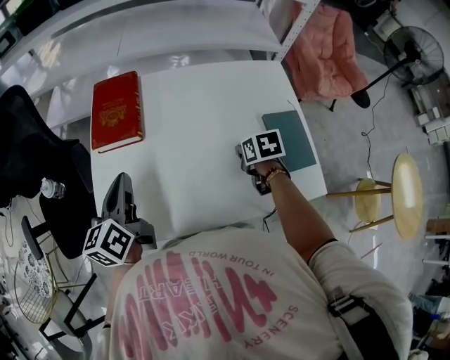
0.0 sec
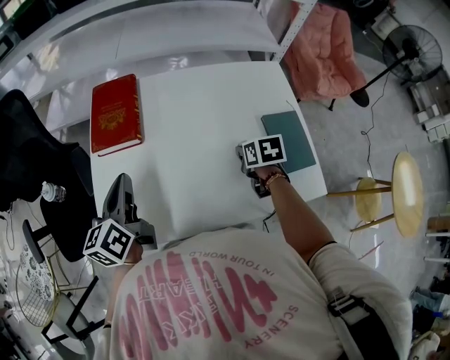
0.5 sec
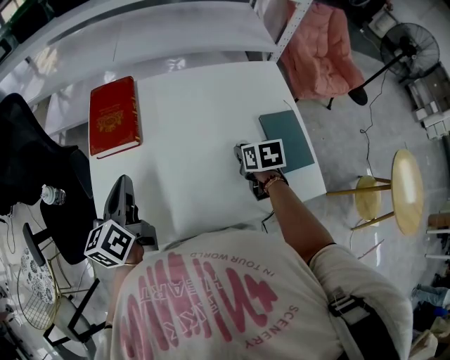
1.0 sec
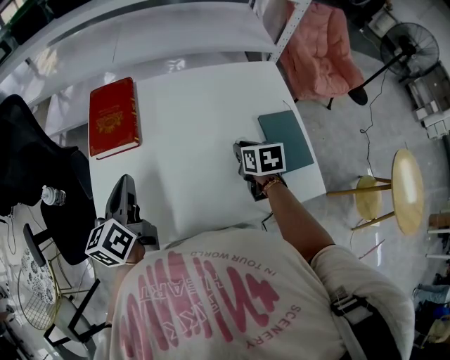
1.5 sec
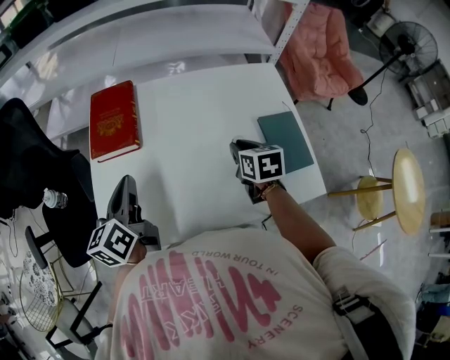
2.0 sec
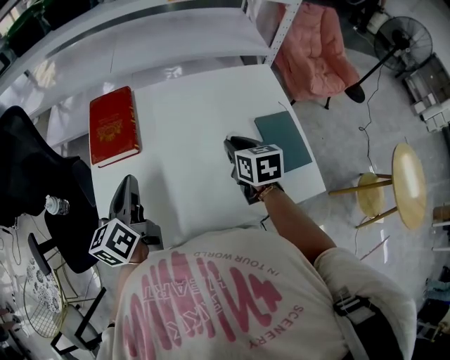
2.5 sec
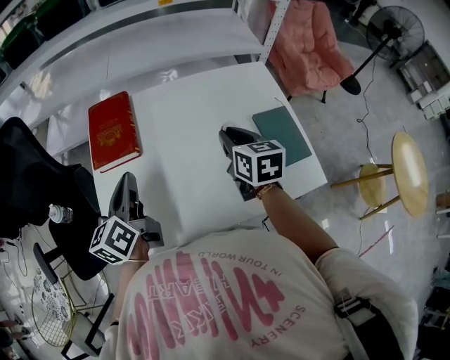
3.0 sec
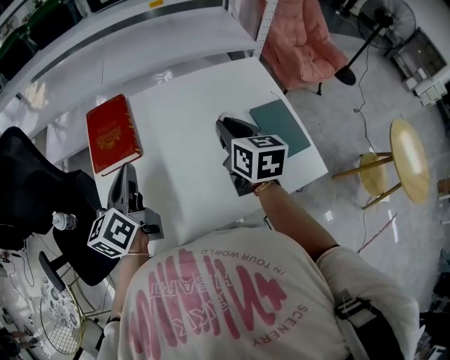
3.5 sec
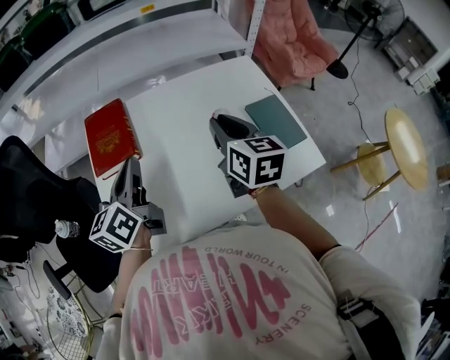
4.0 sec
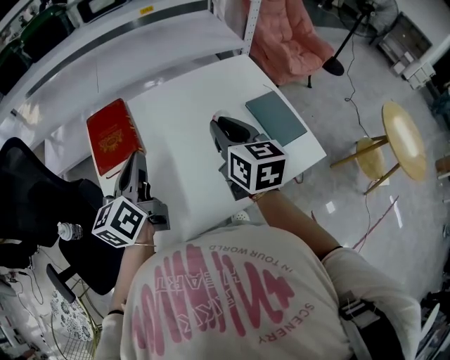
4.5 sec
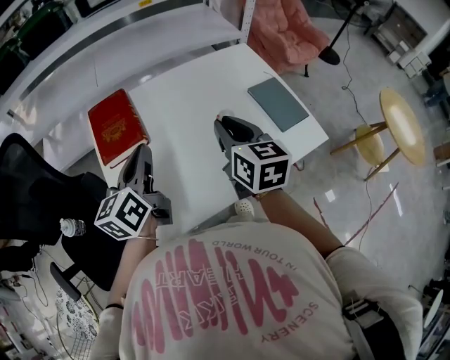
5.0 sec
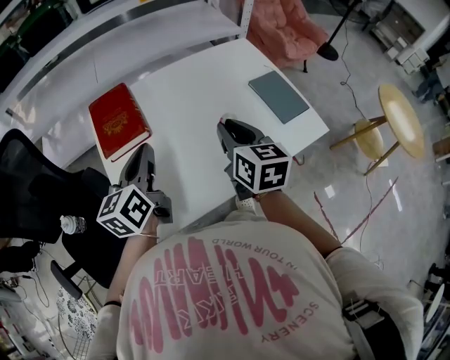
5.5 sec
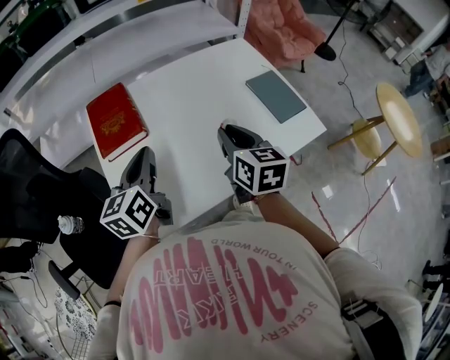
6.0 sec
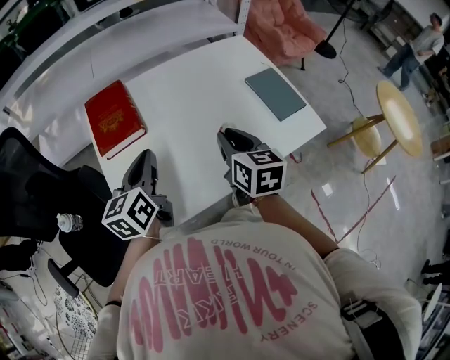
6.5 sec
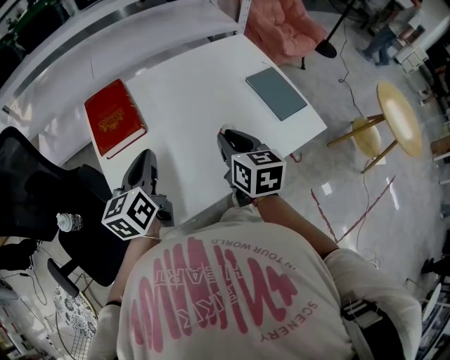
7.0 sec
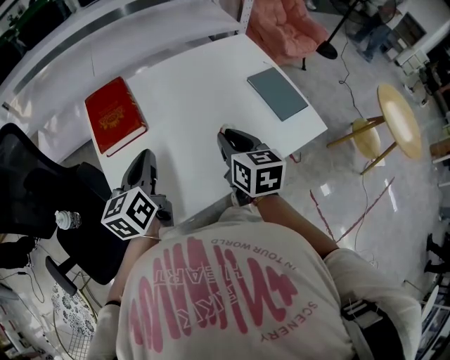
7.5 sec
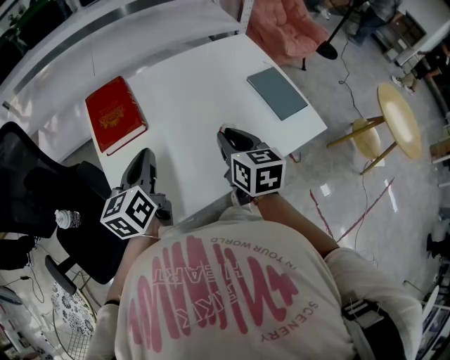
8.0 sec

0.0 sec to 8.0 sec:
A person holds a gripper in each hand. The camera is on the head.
0.0 sec to 2.0 sec: The right gripper moves upward, some 5 cm.
2.0 sec to 4.0 sec: The left gripper is displaced upward by roughly 5 cm. The right gripper is displaced upward by approximately 15 cm, and rotates some 30 degrees.
4.0 sec to 6.0 sec: The right gripper is displaced backward and downward by approximately 10 cm; the left gripper travels backward by about 5 cm.
6.0 sec to 8.0 sec: The grippers stay close to where they were, moving slightly.

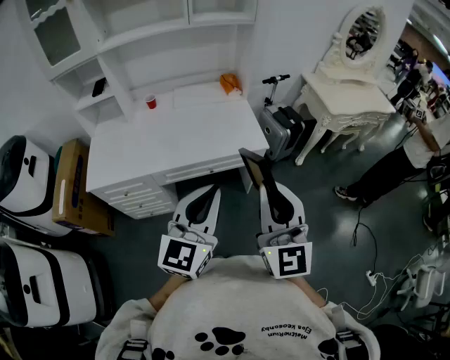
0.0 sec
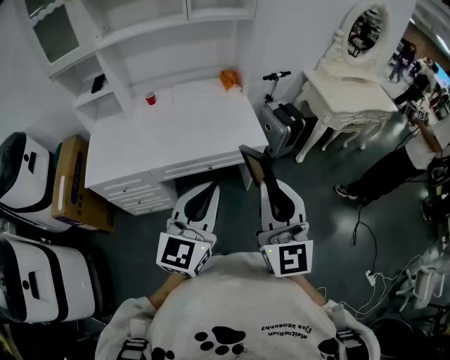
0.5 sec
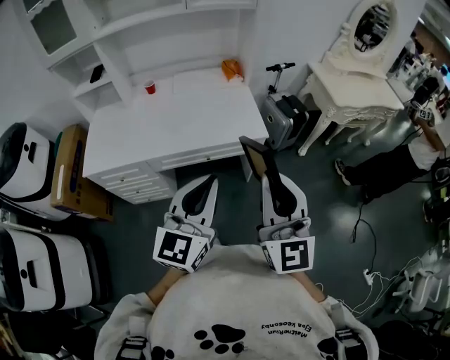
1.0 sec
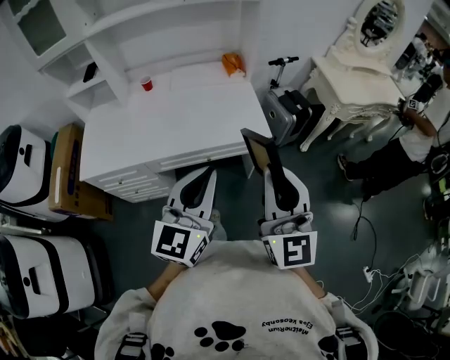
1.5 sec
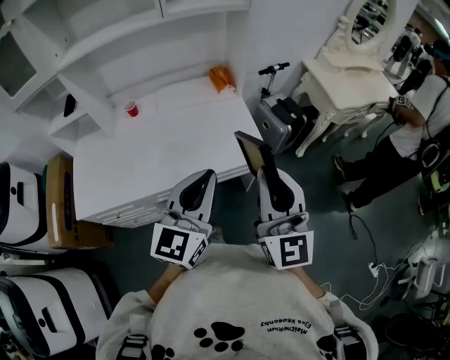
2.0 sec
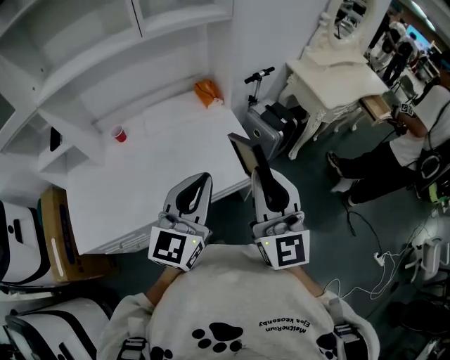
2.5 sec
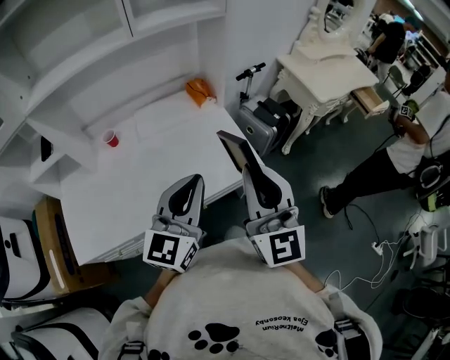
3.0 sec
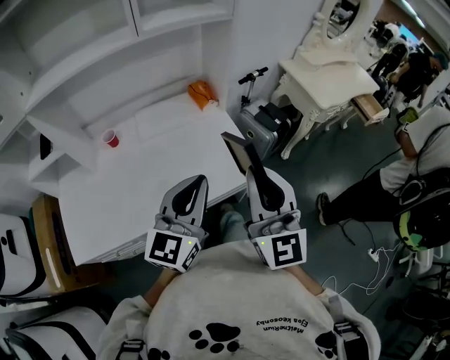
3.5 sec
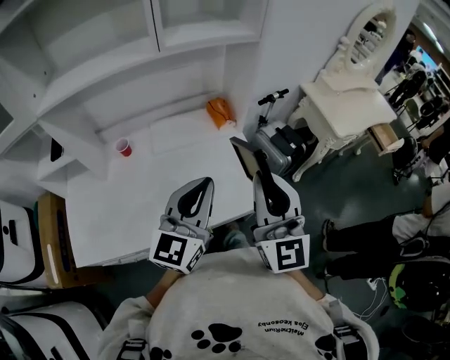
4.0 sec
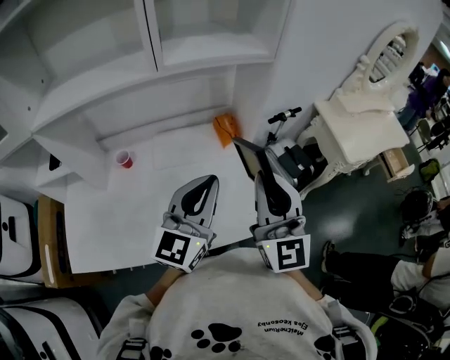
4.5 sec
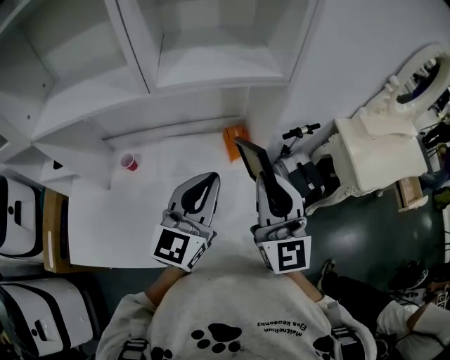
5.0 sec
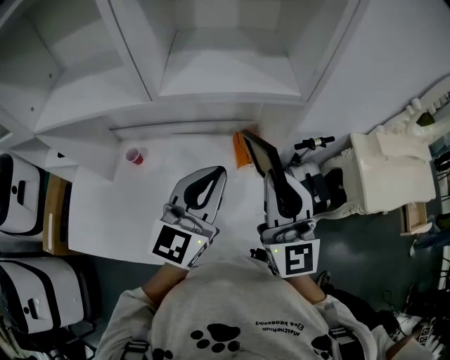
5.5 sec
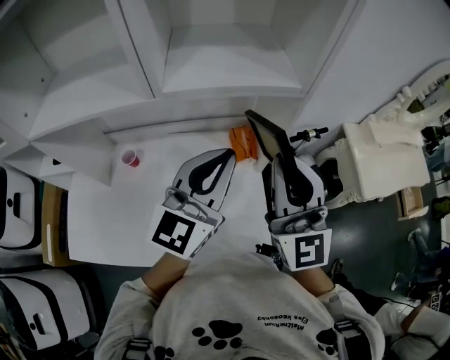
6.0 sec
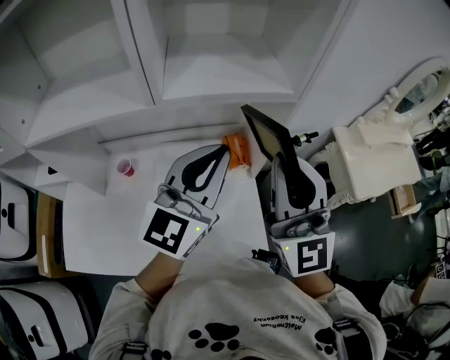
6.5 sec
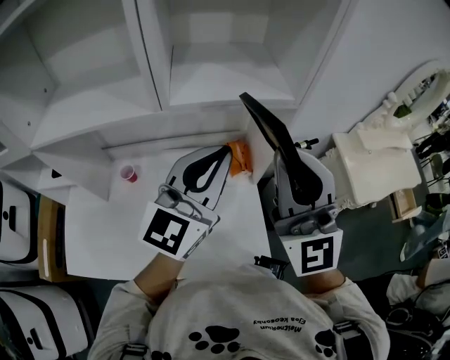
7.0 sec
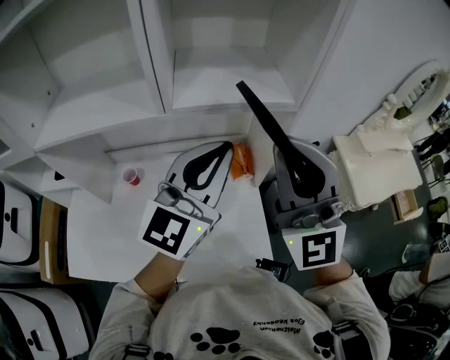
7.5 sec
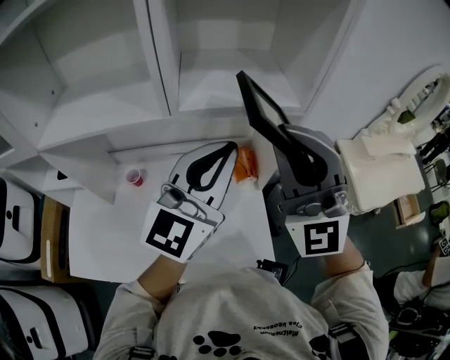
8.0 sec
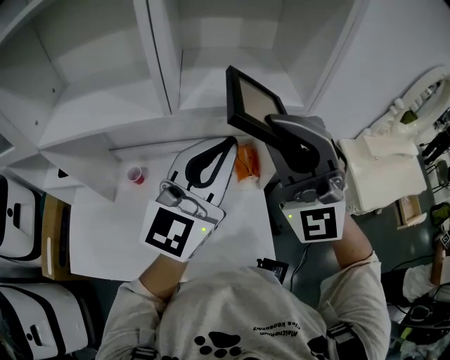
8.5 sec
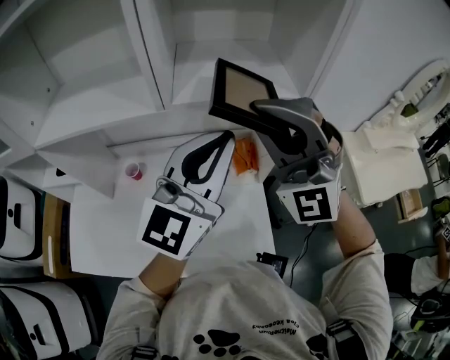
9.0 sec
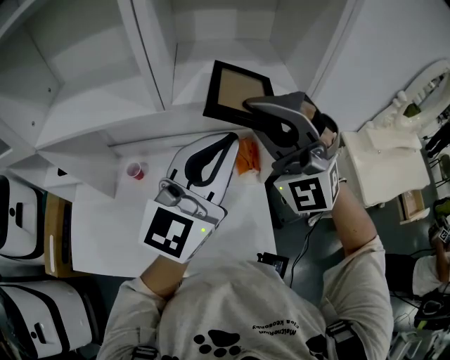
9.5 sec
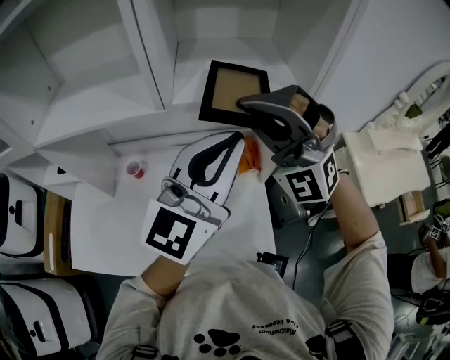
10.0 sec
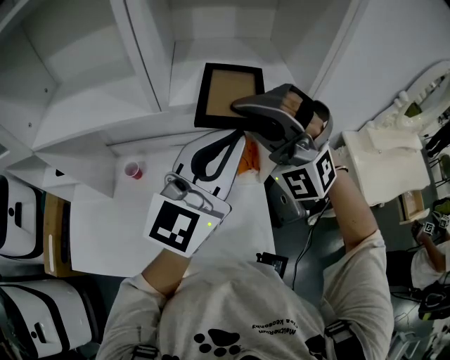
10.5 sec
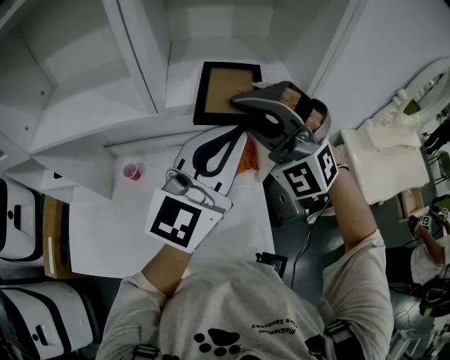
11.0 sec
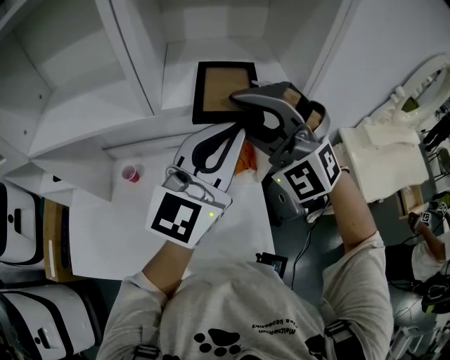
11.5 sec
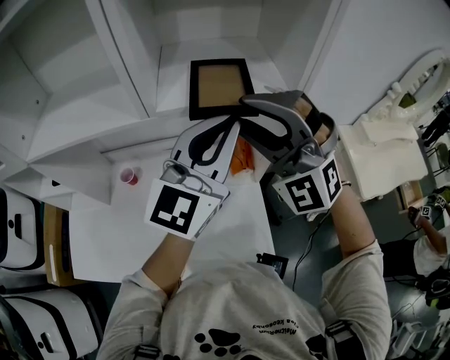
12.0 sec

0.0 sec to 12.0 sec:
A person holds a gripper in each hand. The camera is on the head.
0.0 sec to 2.0 sec: Both grippers travel together forward, about 20 cm.
2.0 sec to 4.0 sec: Both grippers move forward and to the left, approximately 20 cm.
4.0 sec to 6.0 sec: Both grippers travel together forward, about 30 cm.
6.0 sec to 8.0 sec: The left gripper shifts approximately 5 cm upward; the right gripper goes roughly 10 cm upward and to the left, and changes its angle by roughly 30 degrees.
8.0 sec to 10.0 sec: The right gripper heads forward and downward, covering about 10 cm, and swivels some 30 degrees.
10.0 sec to 12.0 sec: The right gripper opens up. Meanwhile the left gripper ends up some 5 cm from where it was.

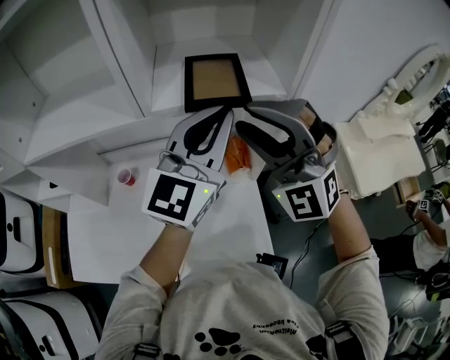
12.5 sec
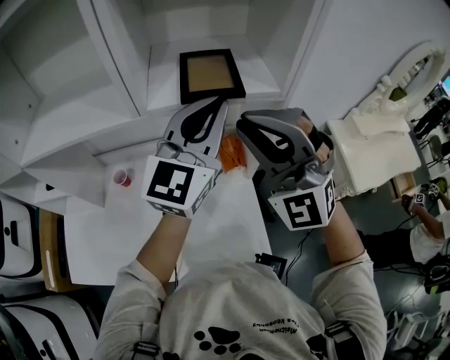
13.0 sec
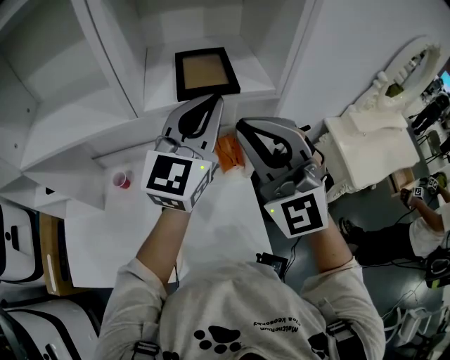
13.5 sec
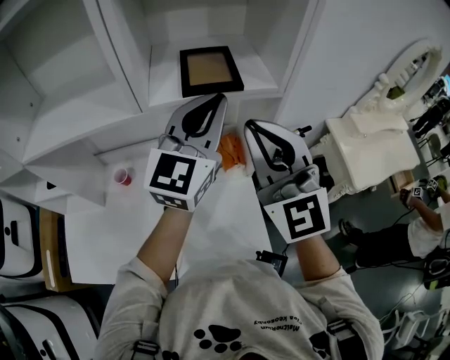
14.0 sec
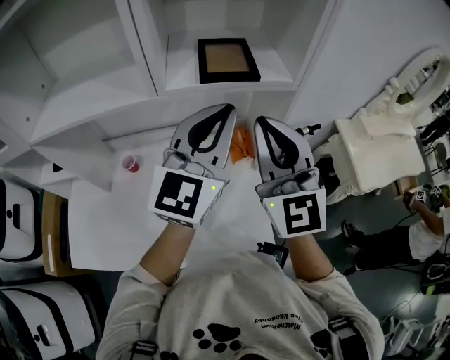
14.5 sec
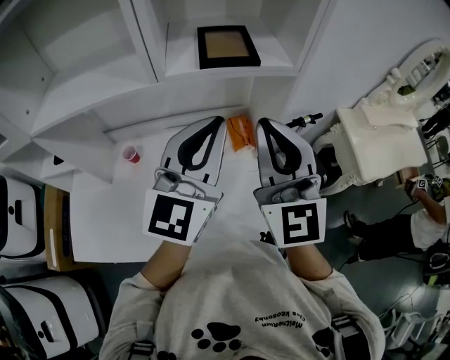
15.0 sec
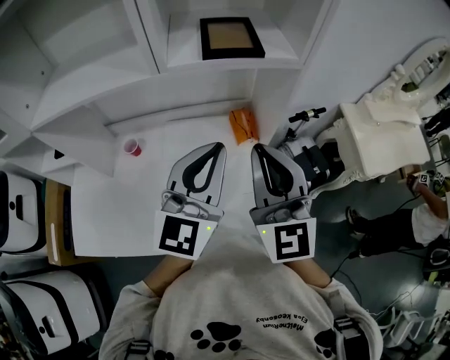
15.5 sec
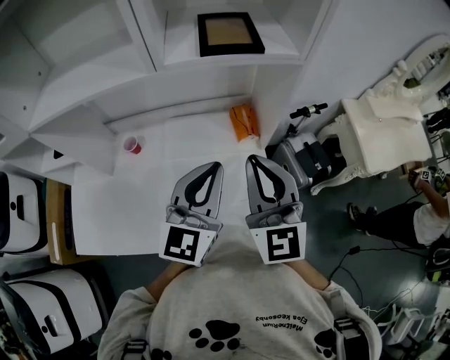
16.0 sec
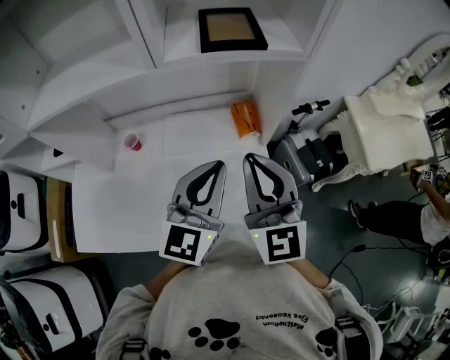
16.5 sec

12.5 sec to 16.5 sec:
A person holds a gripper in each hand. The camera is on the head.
12.5 sec to 14.5 sec: The right gripper twists about 50 degrees clockwise, seen from behind, and closes its fingers.
14.5 sec to 16.5 sec: The two grippers go about 15 cm downward and backward.

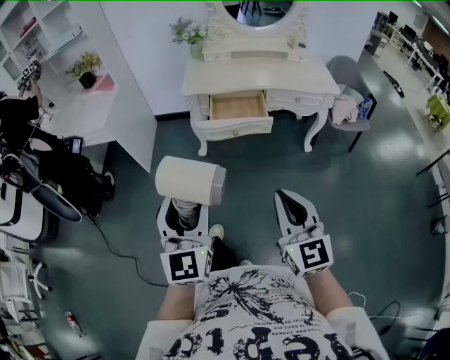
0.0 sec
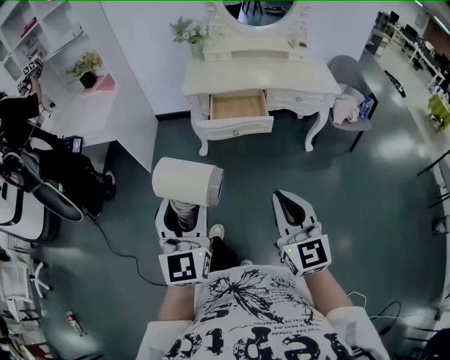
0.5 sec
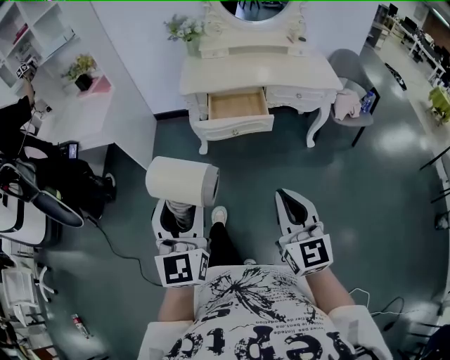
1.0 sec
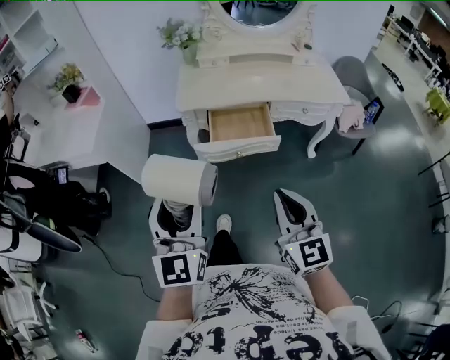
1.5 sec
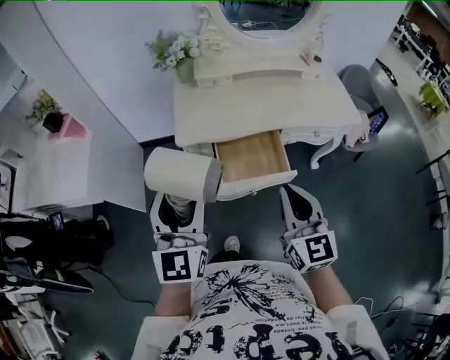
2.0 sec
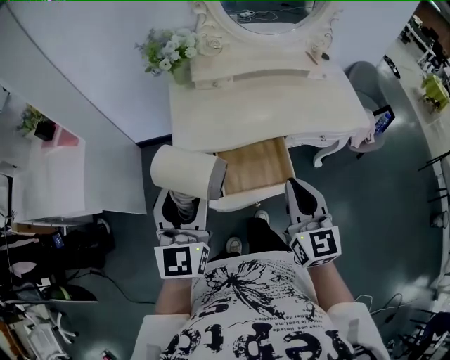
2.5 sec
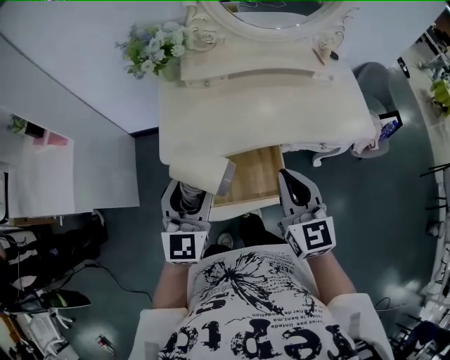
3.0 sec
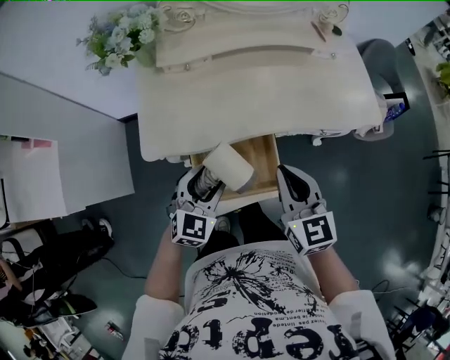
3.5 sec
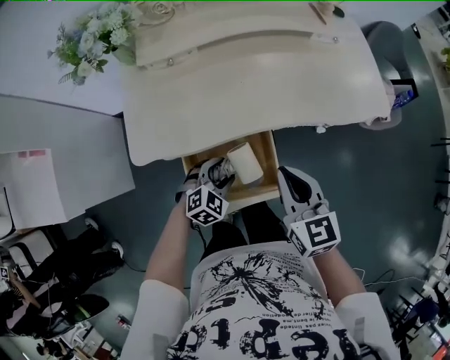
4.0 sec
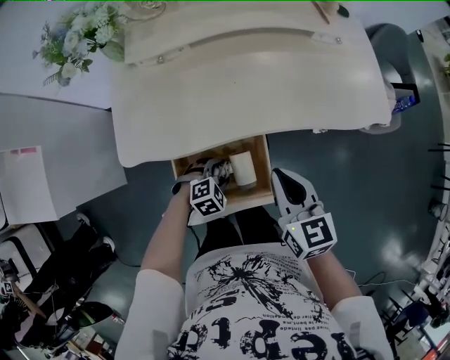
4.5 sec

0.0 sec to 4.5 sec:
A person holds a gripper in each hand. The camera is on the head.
0.0 sec to 2.0 sec: Both grippers move forward, roughly 40 cm.
2.0 sec to 4.5 sec: The right gripper shifts some 30 cm forward and downward, and swivels about 30 degrees; the left gripper is displaced downward, forward and to the right by about 50 cm, and tilts its fingers approximately 70 degrees downward.
